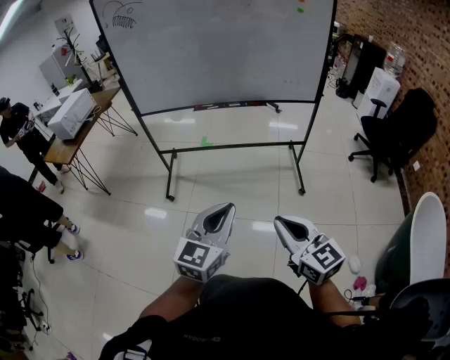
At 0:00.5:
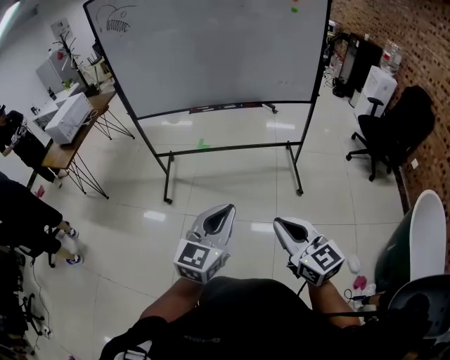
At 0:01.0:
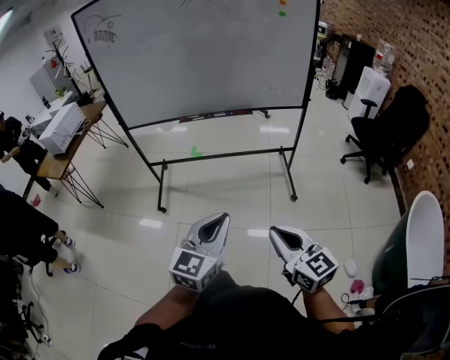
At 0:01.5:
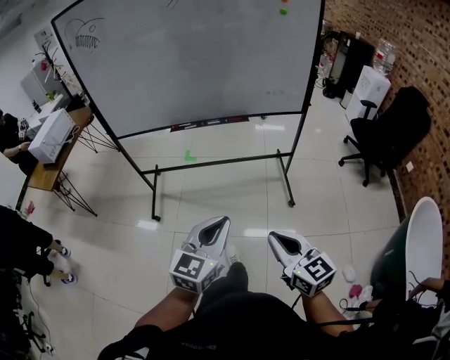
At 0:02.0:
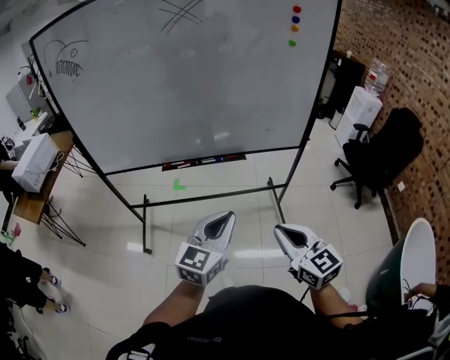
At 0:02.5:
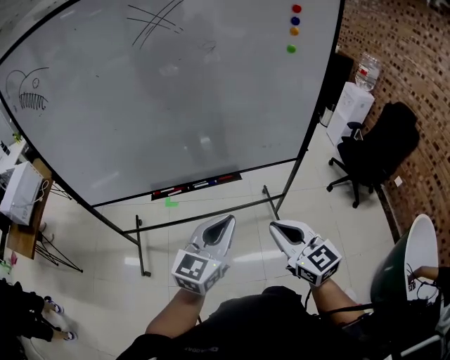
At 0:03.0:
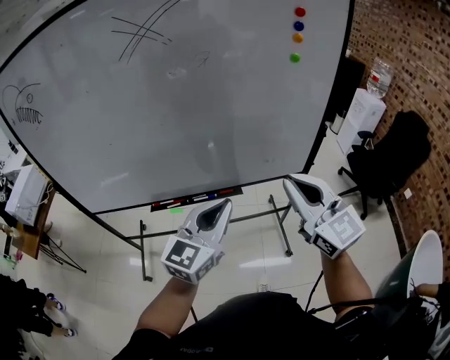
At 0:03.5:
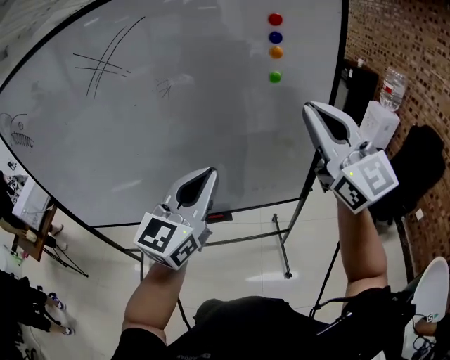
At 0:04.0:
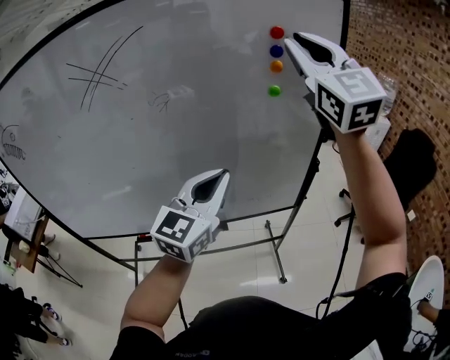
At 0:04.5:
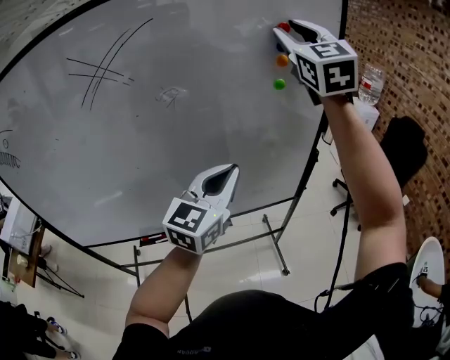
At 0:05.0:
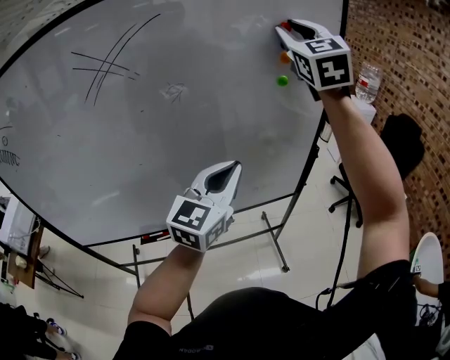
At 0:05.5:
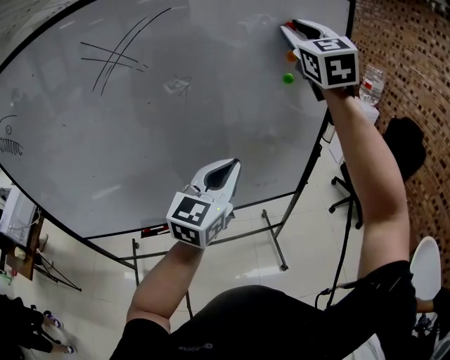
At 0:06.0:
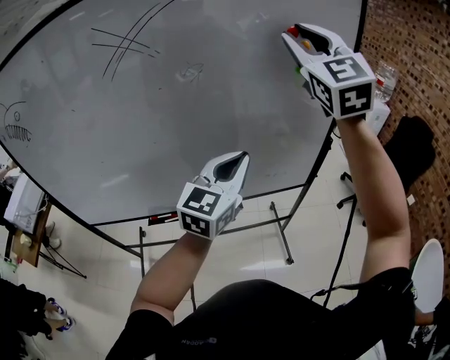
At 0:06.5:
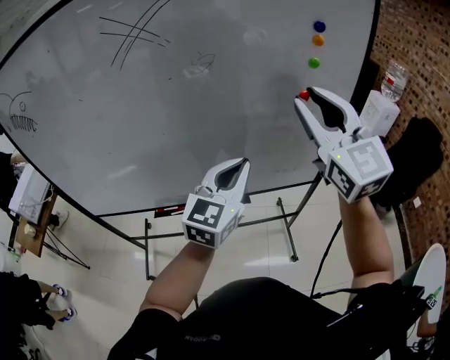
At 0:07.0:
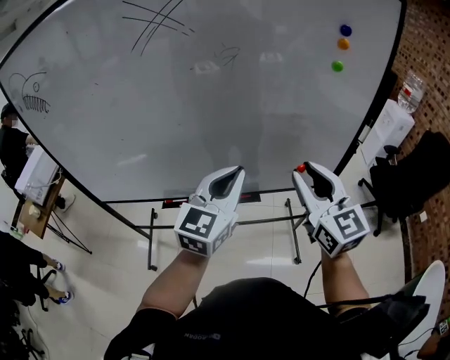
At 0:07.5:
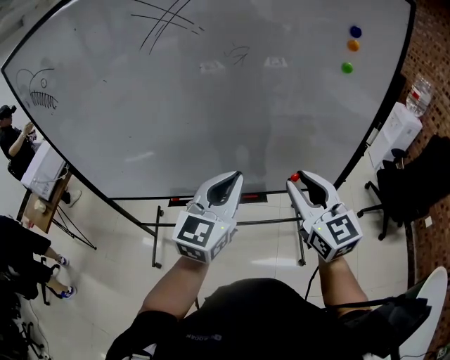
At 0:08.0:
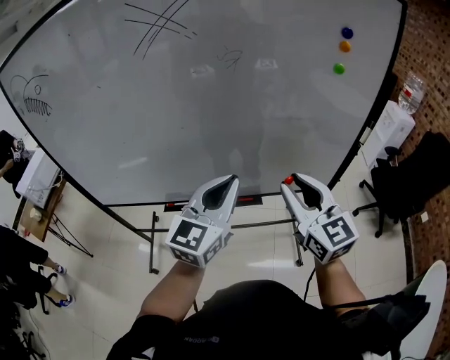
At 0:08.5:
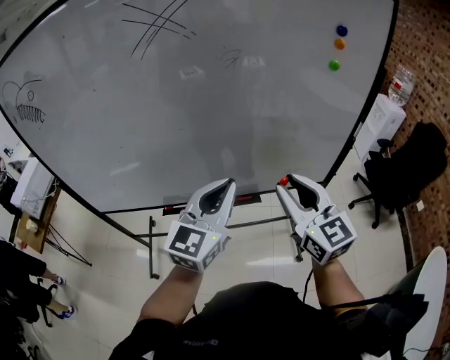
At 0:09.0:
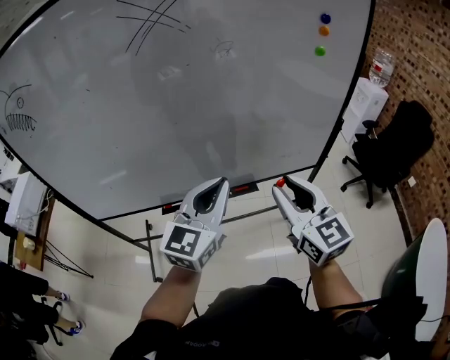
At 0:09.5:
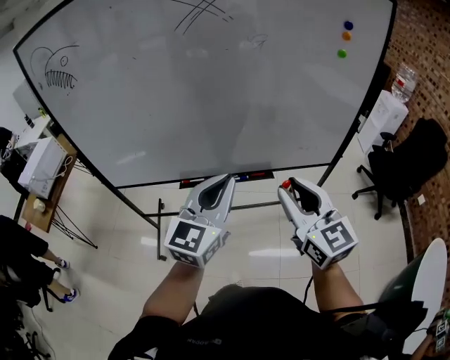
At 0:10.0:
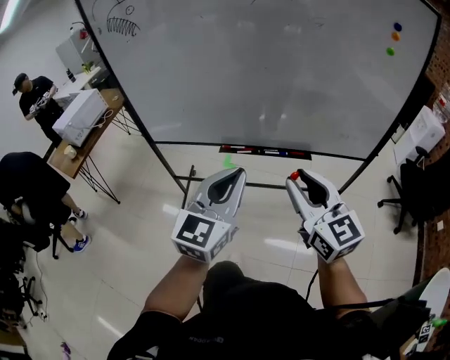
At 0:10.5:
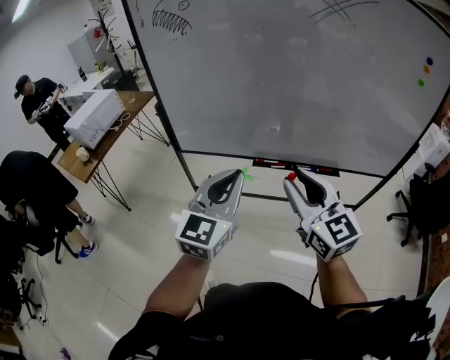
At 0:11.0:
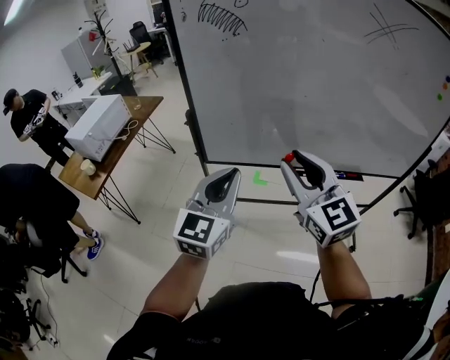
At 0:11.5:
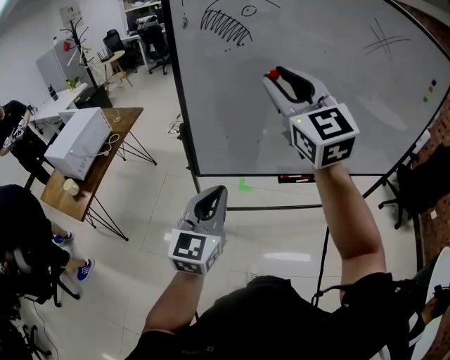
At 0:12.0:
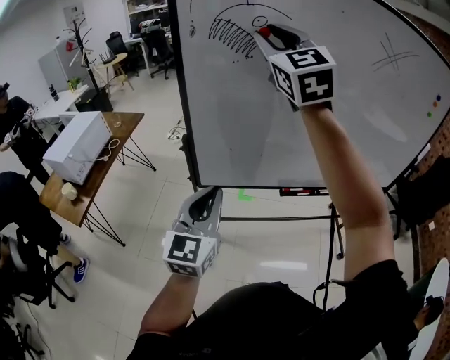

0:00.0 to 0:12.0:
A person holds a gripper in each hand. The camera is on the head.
0:00.0 to 0:02.0: Both grippers move forward, approximately 30 cm.
0:02.0 to 0:04.0: The right gripper shifts roughly 70 cm forward and upward, and turns by roughly 50 degrees. Meanwhile the left gripper shifts some 40 cm forward and upward.
0:04.0 to 0:06.0: The right gripper shifts about 5 cm to the left.
0:06.0 to 0:08.0: The right gripper travels downward and backward by some 35 cm, and turns by some 40 degrees. Meanwhile the left gripper heads to the left, covering roughly 10 cm.
0:08.0 to 0:10.0: The two grippers go some 25 cm backward and to the left.
0:10.0 to 0:12.0: The pair of grippers is taken to the left and forward, roughly 50 cm. The right gripper goes roughly 30 cm upward, and rotates about 40 degrees.

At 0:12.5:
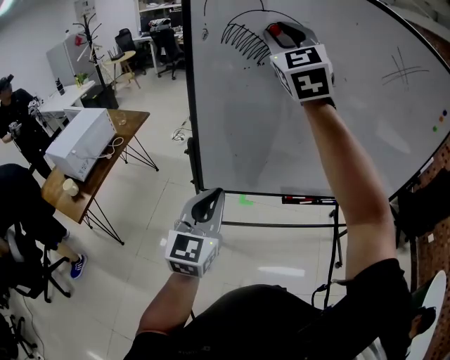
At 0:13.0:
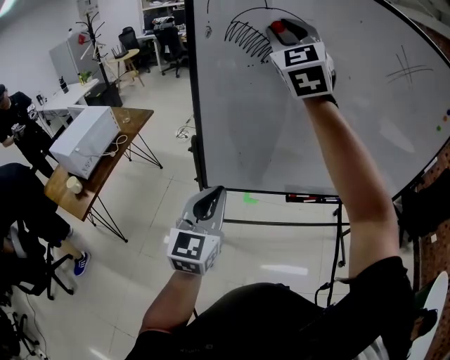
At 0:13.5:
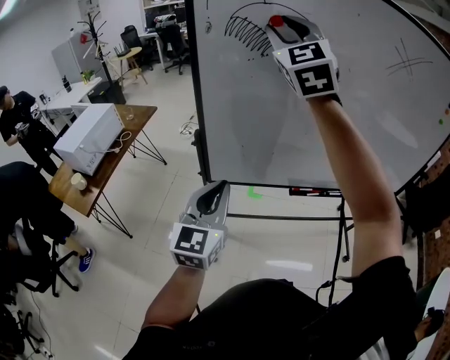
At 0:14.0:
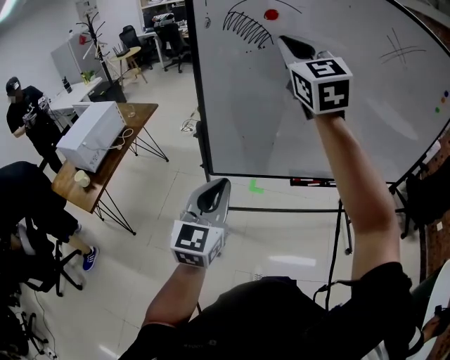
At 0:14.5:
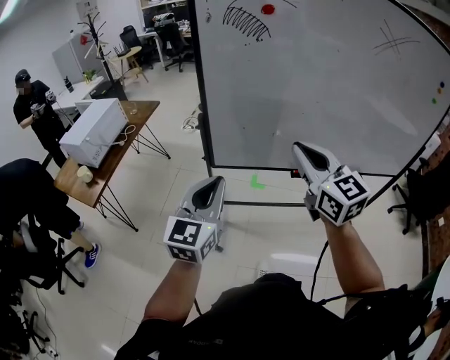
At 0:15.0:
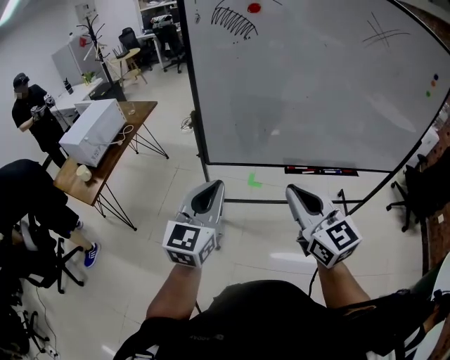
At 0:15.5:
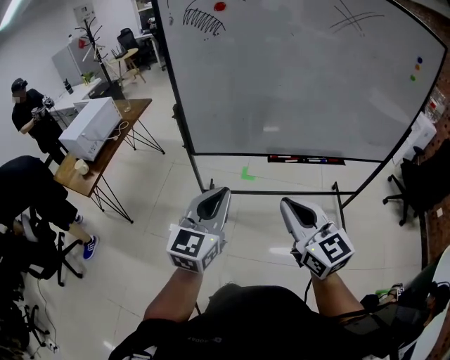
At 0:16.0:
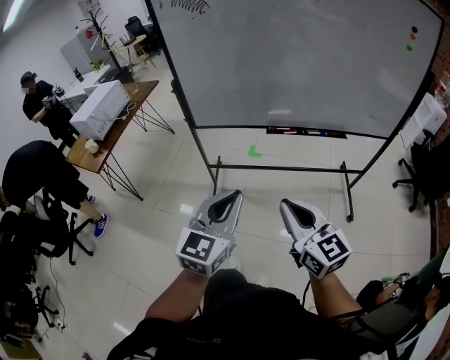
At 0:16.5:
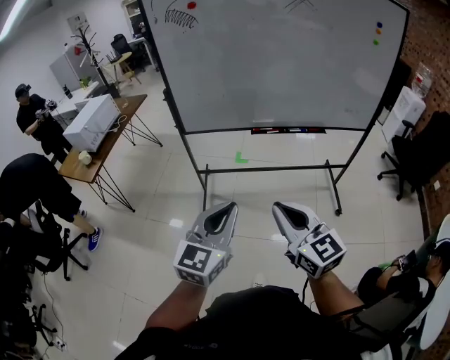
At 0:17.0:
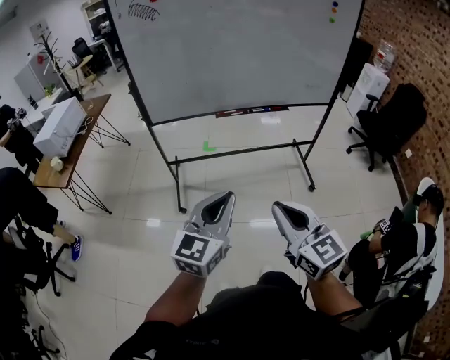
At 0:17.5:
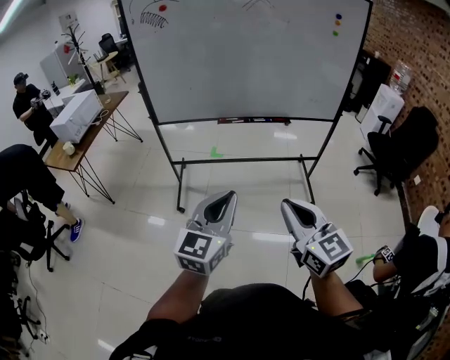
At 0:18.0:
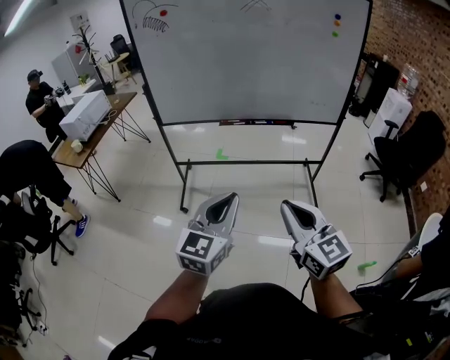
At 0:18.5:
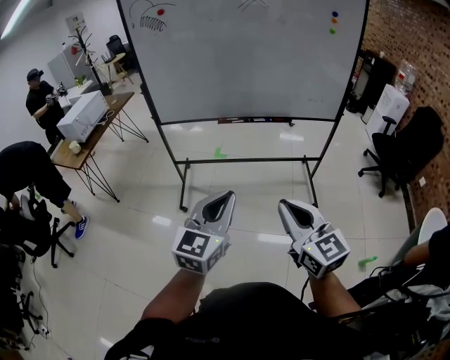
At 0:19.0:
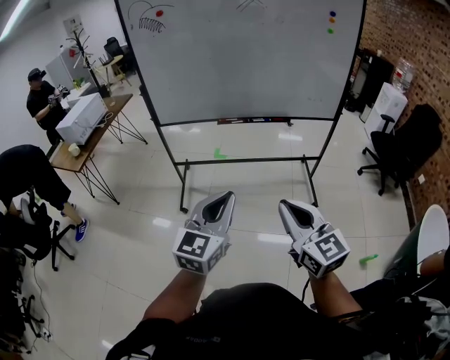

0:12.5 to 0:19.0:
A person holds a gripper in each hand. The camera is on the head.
0:12.5 to 0:14.5: The right gripper shifts approximately 35 cm downward and backward, rotates approximately 40 degrees, and closes up; the left gripper heads backward, covering roughly 10 cm.
0:14.5 to 0:17.0: Both grippers are carried backward and to the right, about 50 cm.
0:17.0 to 0:19.0: Both grippers travel together to the right, about 15 cm.

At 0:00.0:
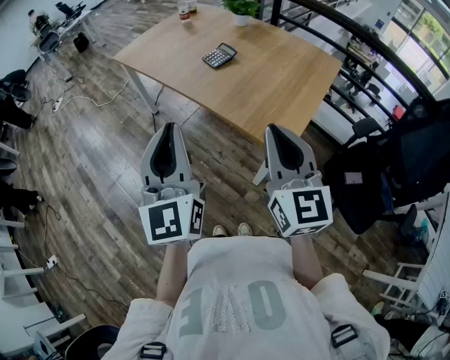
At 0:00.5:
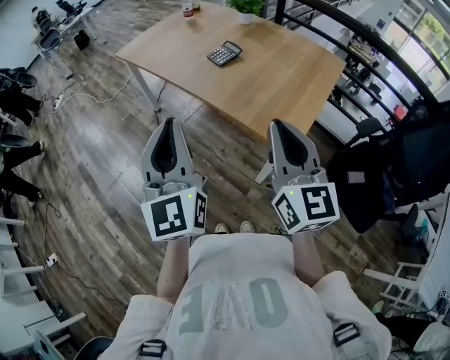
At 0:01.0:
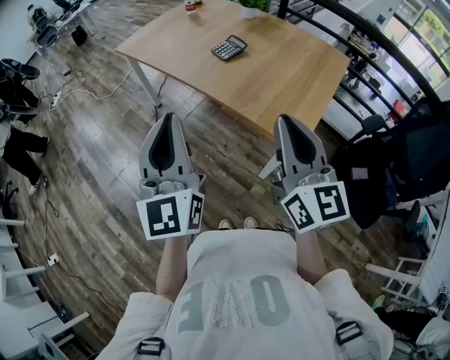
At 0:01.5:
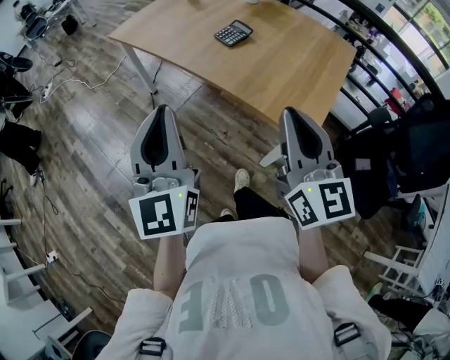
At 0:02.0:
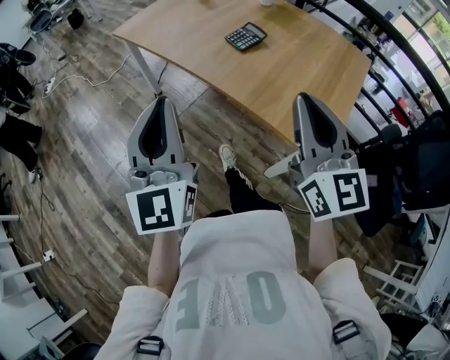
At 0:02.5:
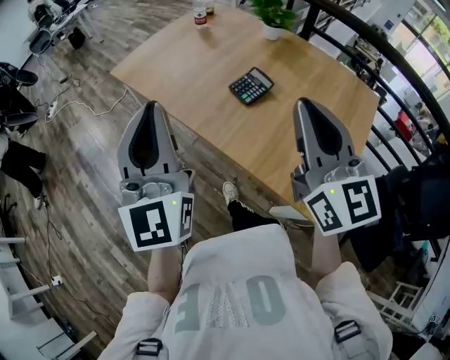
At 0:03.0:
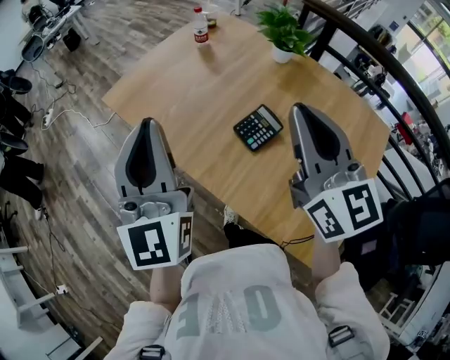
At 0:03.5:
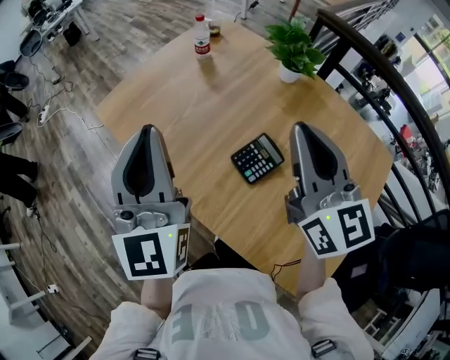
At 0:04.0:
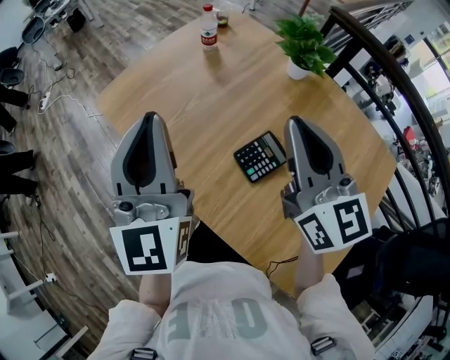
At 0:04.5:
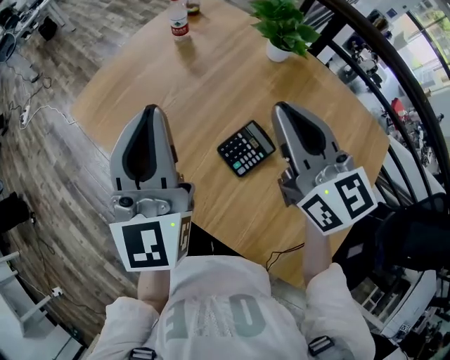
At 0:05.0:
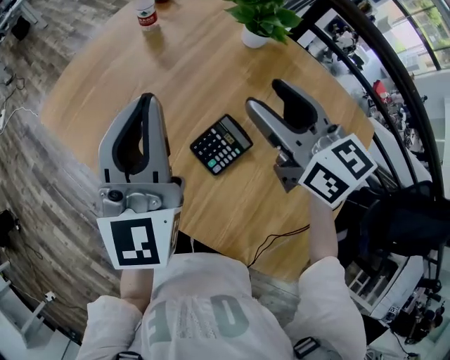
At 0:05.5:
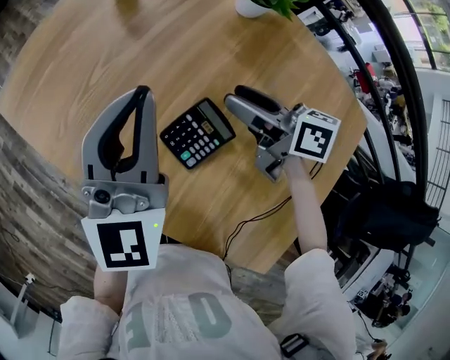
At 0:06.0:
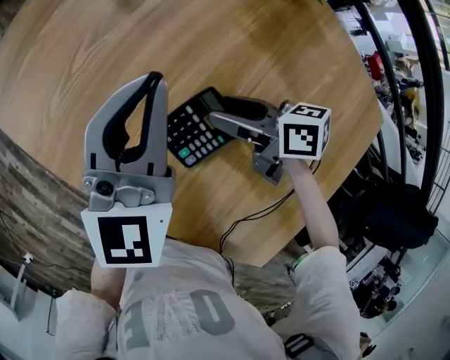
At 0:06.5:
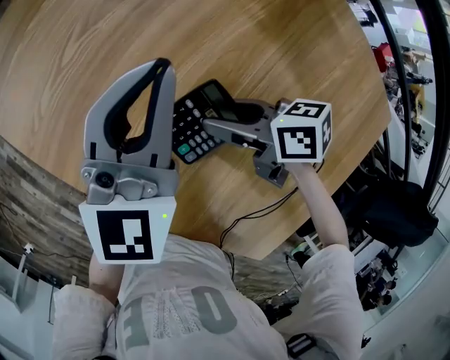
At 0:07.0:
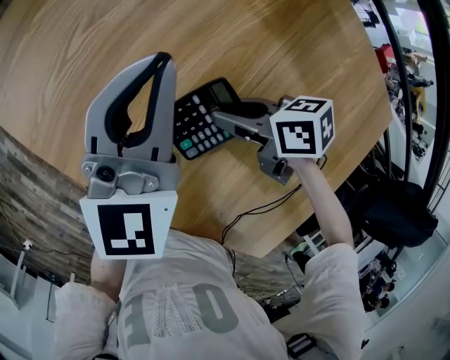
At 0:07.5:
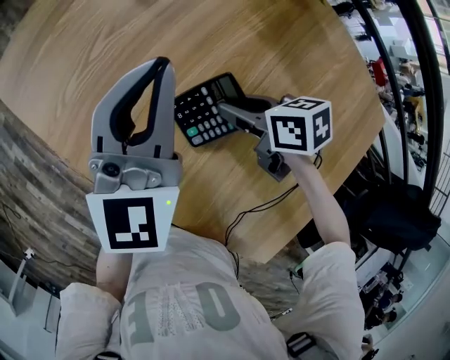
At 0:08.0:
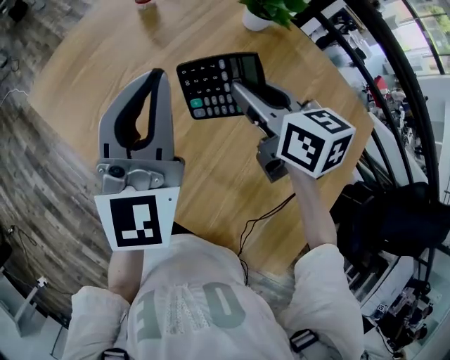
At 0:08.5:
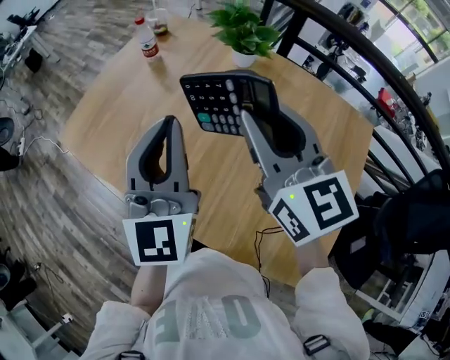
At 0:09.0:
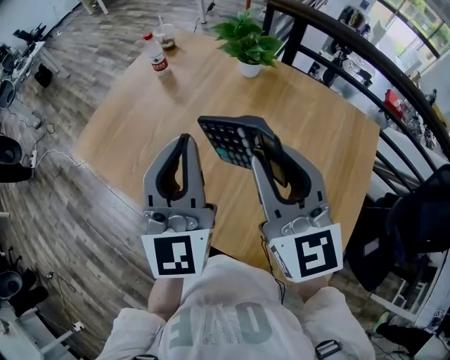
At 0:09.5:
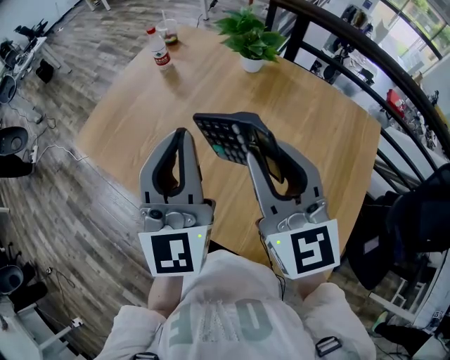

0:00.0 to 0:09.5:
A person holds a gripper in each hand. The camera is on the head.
0:00.0 to 0:02.0: The two grippers go some 15 cm forward and to the left.
0:02.0 to 0:04.0: The pair of grippers is taken forward, approximately 50 cm.
0:04.0 to 0:05.5: The right gripper is displaced downward and to the right by roughly 25 cm, swivels some 50 degrees, and opens up; the left gripper moves to the right, downward and forward, some 20 cm, and turns by some 20 degrees.
0:05.5 to 0:07.5: The right gripper travels downward by roughly 10 cm, swivels approximately 30 degrees, and closes up.
0:07.5 to 0:09.5: The right gripper is displaced upward by some 35 cm, and tips its fingers upward by approximately 40 degrees. Meanwhile the left gripper goes some 20 cm upward.
